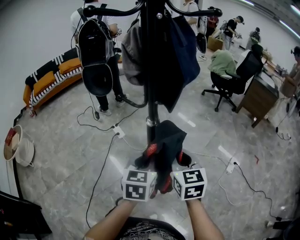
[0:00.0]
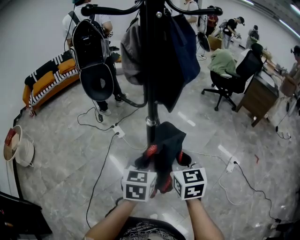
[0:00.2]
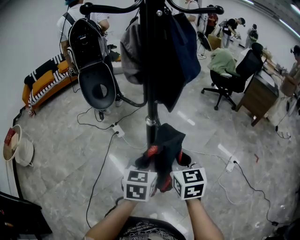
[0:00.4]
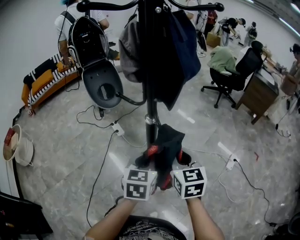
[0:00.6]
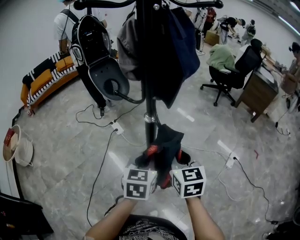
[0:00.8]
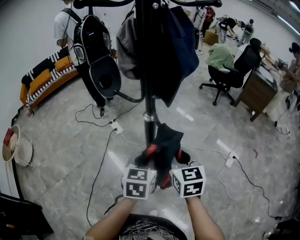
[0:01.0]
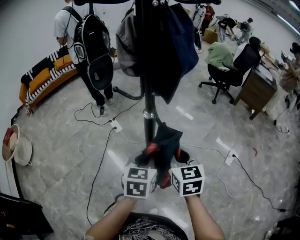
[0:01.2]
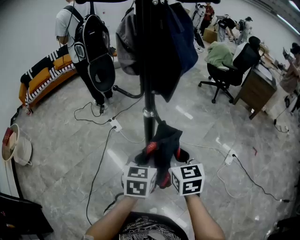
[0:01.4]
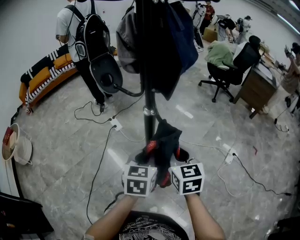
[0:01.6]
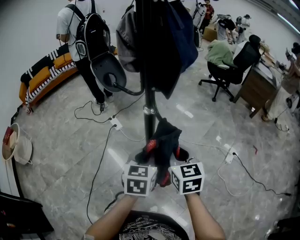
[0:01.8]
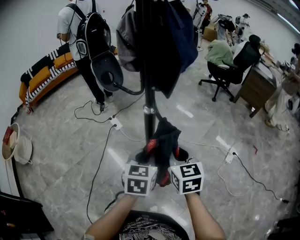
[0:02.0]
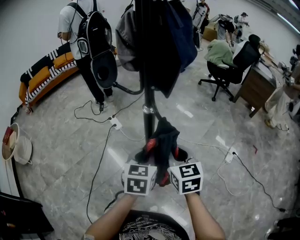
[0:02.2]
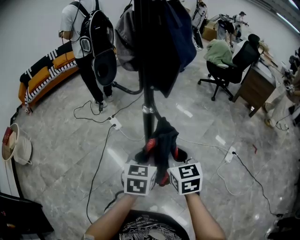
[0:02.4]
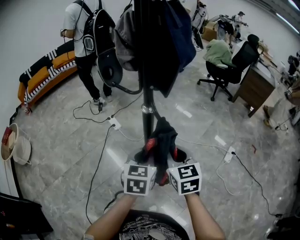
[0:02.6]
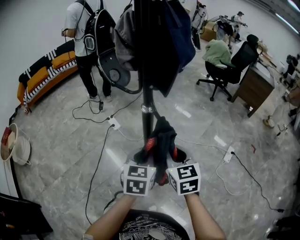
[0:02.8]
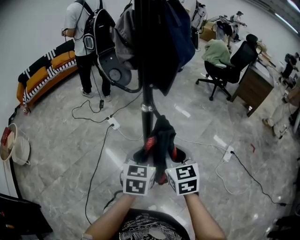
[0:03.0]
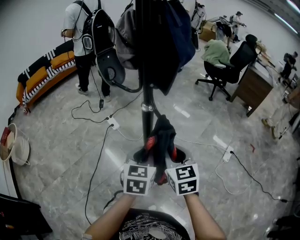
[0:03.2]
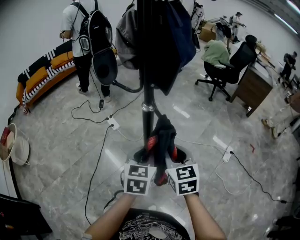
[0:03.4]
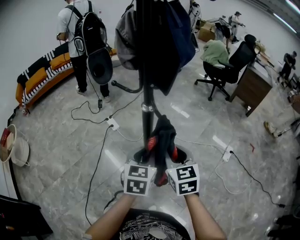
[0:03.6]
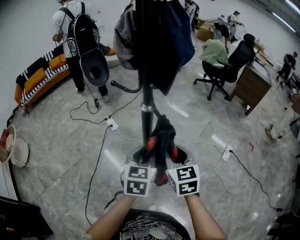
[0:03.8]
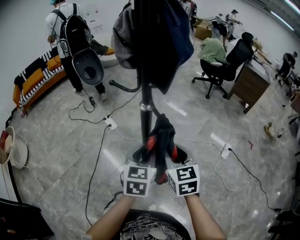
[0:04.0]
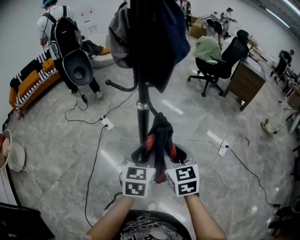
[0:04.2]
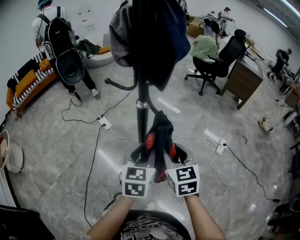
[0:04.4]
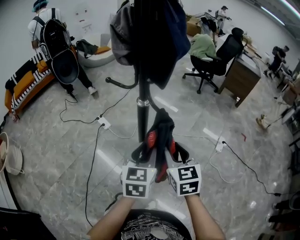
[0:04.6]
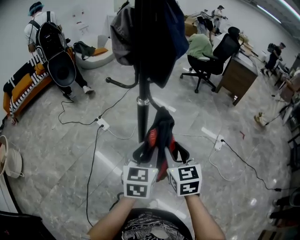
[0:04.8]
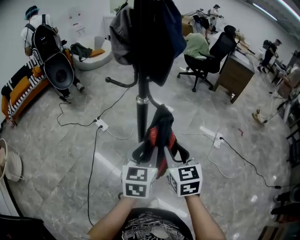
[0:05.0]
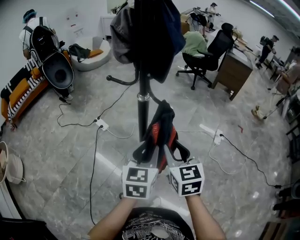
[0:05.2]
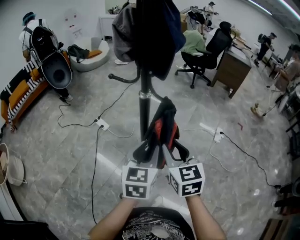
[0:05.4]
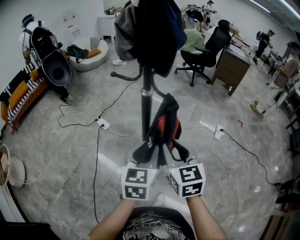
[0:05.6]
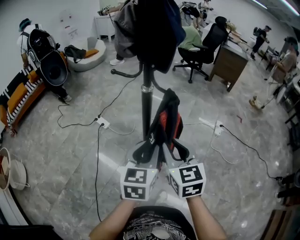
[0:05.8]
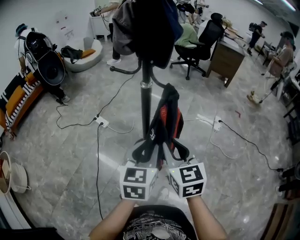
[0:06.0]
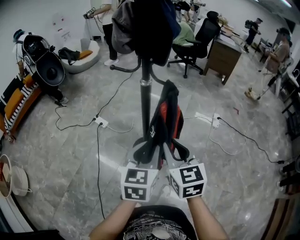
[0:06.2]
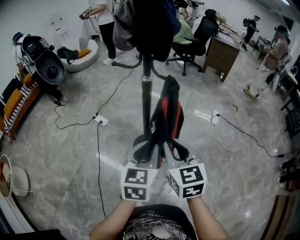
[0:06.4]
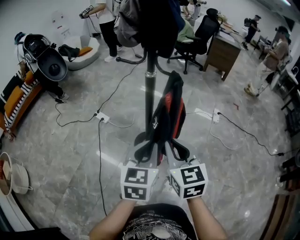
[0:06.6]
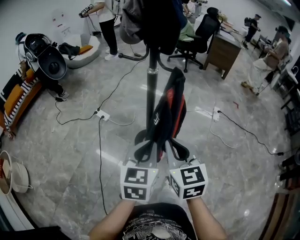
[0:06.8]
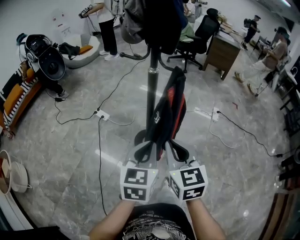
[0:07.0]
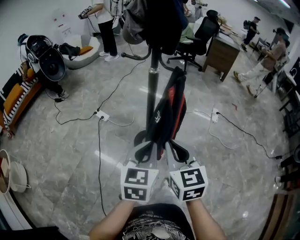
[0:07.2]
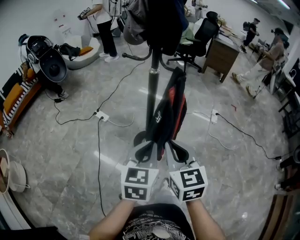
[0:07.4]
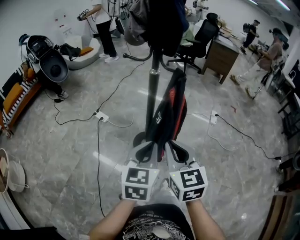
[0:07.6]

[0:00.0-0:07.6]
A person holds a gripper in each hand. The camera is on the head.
0:00.0 to 0:03.0: There are only small adjustments of the grippers.
0:03.0 to 0:04.6: The left gripper opens.
0:04.6 to 0:06.0: The left gripper is displaced backward by approximately 10 cm. The right gripper travels backward and to the left by roughly 15 cm.
0:06.0 to 0:07.6: The two grippers go approximately 10 cm backward. The left gripper closes up.

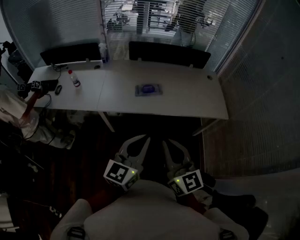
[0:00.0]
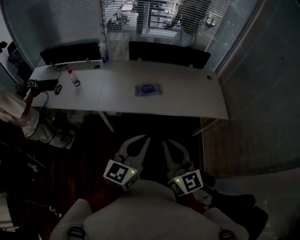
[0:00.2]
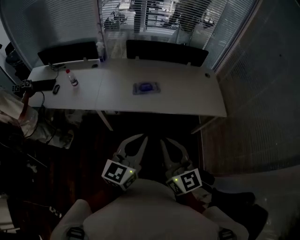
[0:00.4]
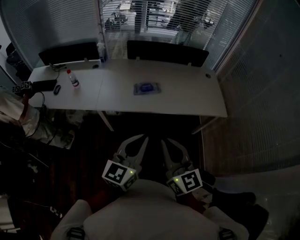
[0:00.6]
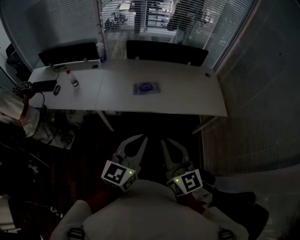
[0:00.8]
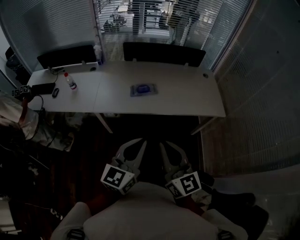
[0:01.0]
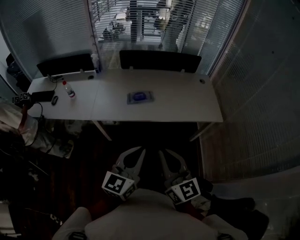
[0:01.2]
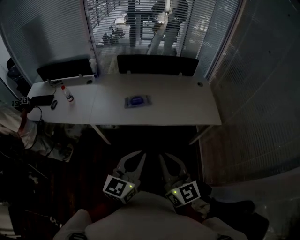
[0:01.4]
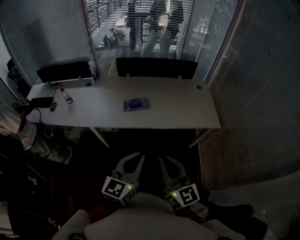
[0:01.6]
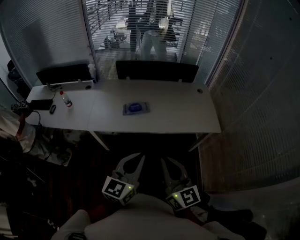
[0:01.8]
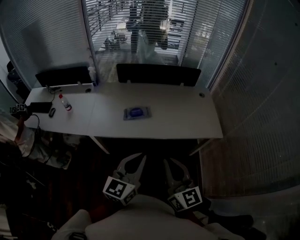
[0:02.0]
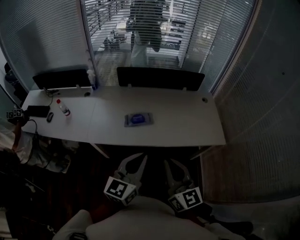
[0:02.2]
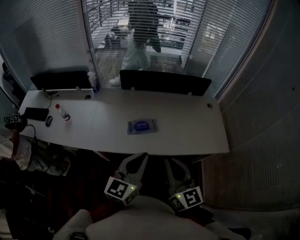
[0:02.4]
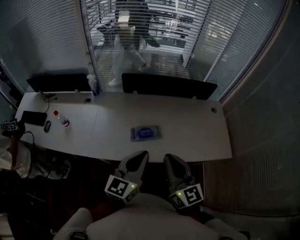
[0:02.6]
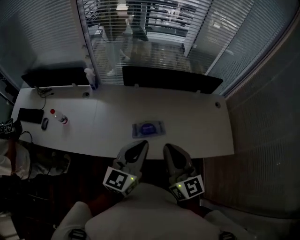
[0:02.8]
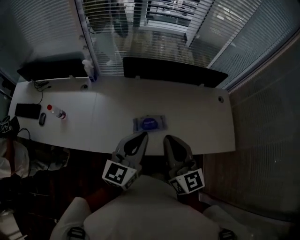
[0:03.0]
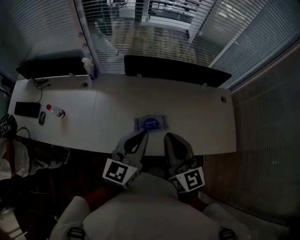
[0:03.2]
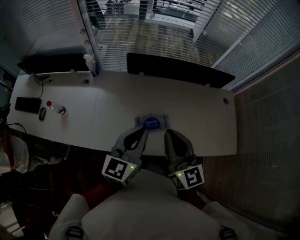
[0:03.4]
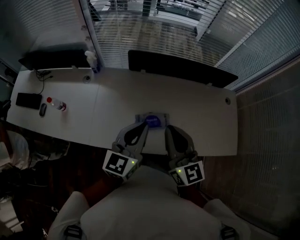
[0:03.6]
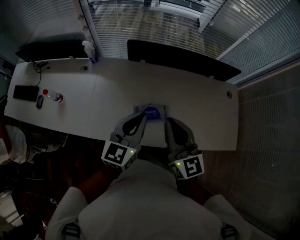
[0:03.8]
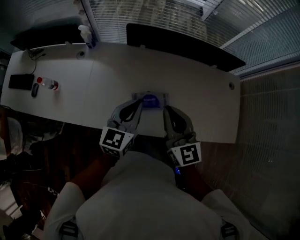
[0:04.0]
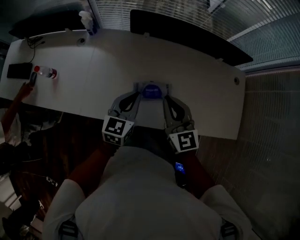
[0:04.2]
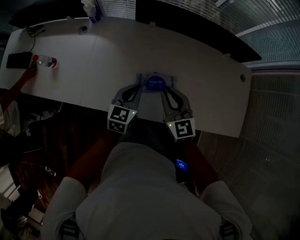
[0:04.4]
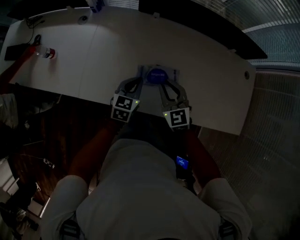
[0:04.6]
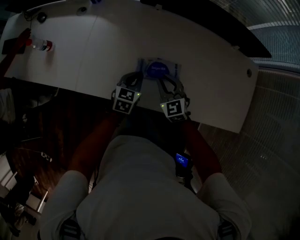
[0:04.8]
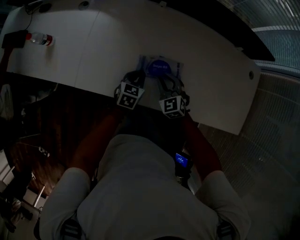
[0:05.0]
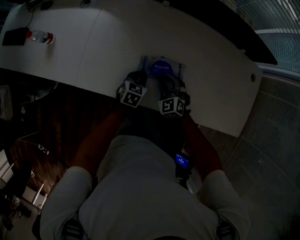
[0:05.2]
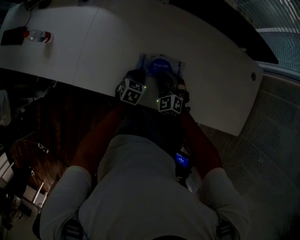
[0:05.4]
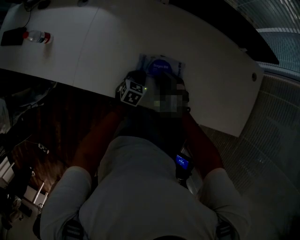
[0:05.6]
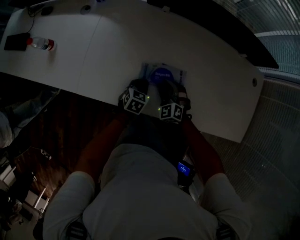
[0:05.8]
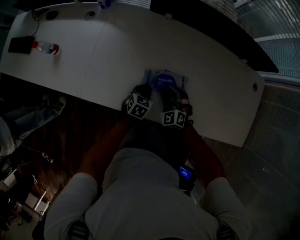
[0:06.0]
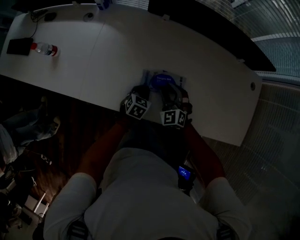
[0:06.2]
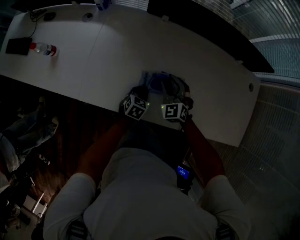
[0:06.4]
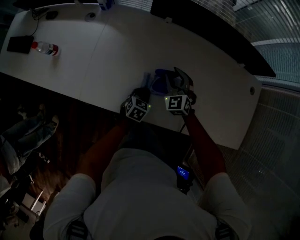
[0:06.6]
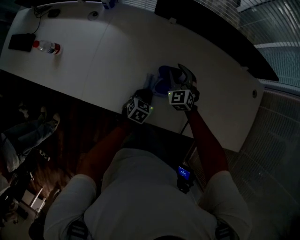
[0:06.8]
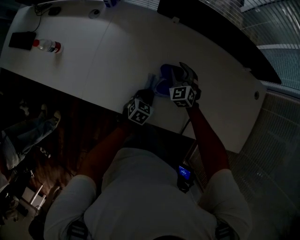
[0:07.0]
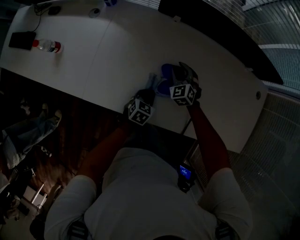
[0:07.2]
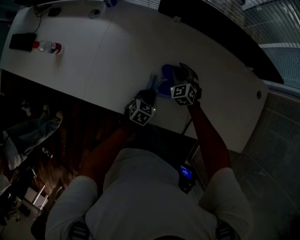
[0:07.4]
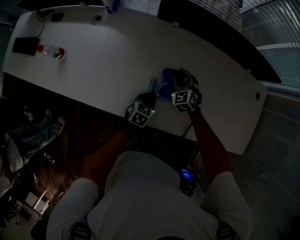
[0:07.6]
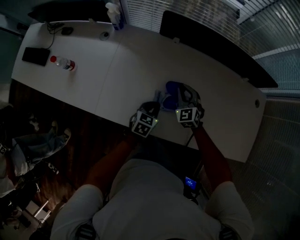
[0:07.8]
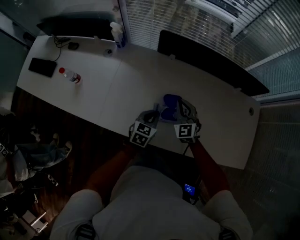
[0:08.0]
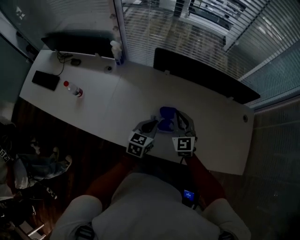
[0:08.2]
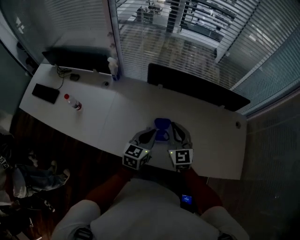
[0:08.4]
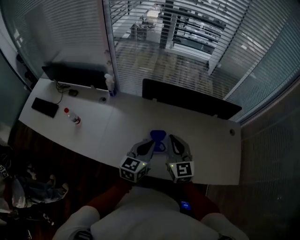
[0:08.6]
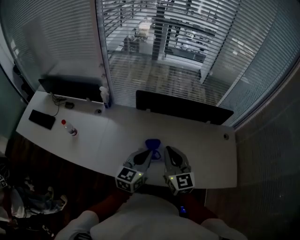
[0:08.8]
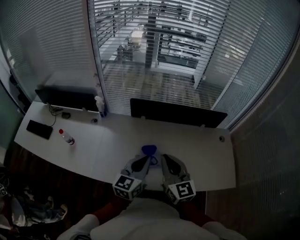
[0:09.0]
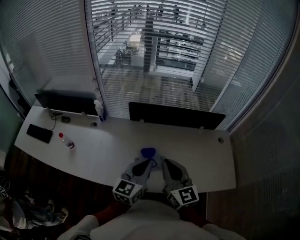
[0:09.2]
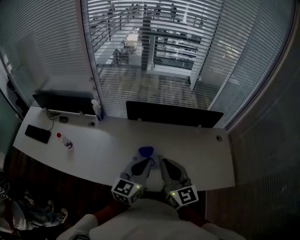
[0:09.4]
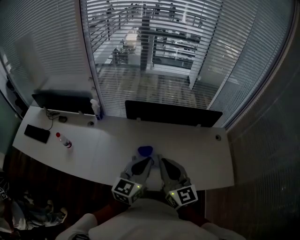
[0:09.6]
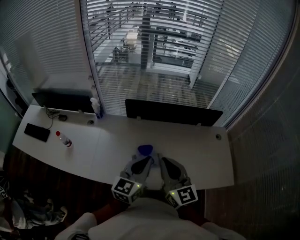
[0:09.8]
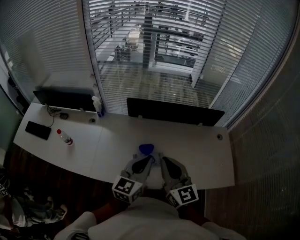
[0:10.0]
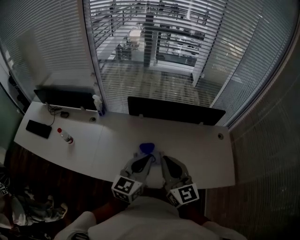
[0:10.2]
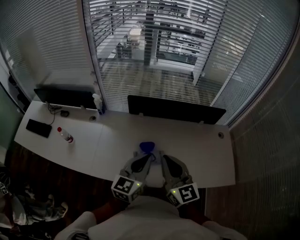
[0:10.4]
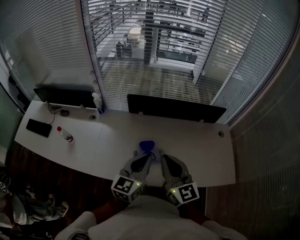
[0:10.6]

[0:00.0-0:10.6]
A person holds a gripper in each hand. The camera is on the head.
0:00.0 to 0:01.6: The two grippers go about 10 cm to the right.
0:01.6 to 0:03.0: The left gripper goes roughly 40 cm forward and to the left; the right gripper travels forward by some 35 cm.
0:03.0 to 0:04.6: The right gripper moves downward and forward, about 30 cm, and rotates approximately 40 degrees. Meanwhile the left gripper travels downward by roughly 30 cm, and rotates about 30 degrees.
0:04.6 to 0:06.0: Both grippers travel together downward, approximately 15 cm. The right gripper rotates roughly 30 degrees, and opens its fingers.
0:06.0 to 0:07.6: The right gripper goes approximately 15 cm forward.
0:07.6 to 0:09.0: The right gripper heads upward and backward, covering approximately 40 cm, tilts its fingers approximately 40 degrees upward, and closes; the left gripper shifts approximately 40 cm upward, and tilts its fingers approximately 40 degrees upward.
0:09.0 to 0:10.6: The grippers stay close to where they were, moving slightly.

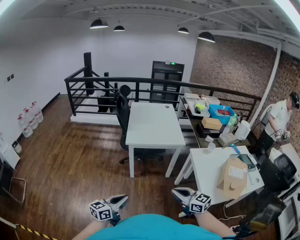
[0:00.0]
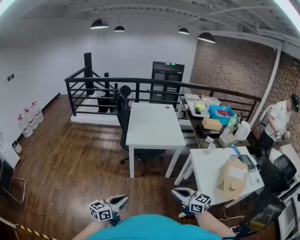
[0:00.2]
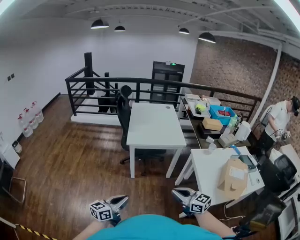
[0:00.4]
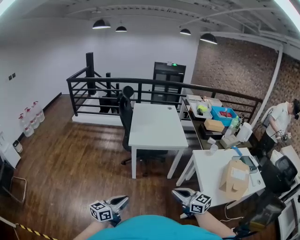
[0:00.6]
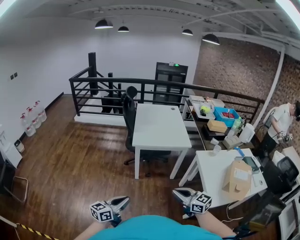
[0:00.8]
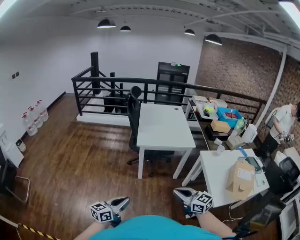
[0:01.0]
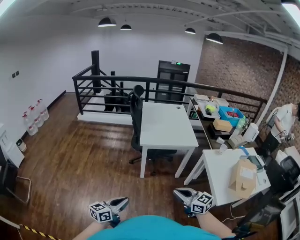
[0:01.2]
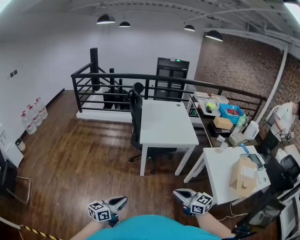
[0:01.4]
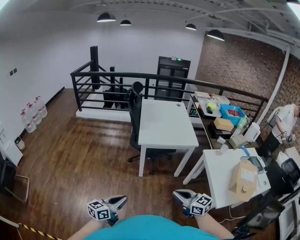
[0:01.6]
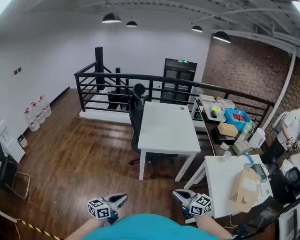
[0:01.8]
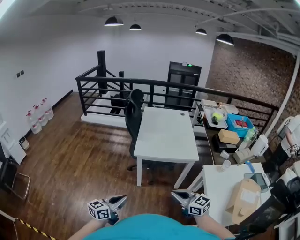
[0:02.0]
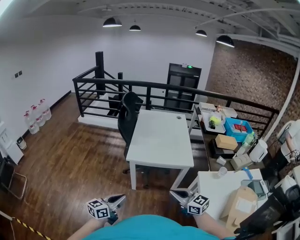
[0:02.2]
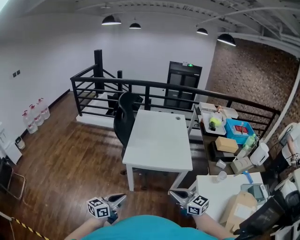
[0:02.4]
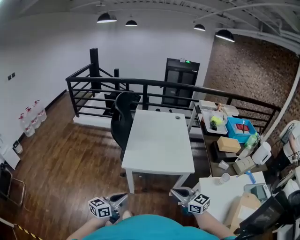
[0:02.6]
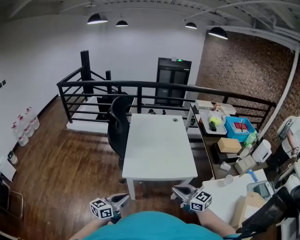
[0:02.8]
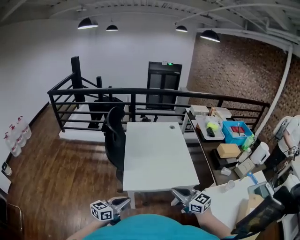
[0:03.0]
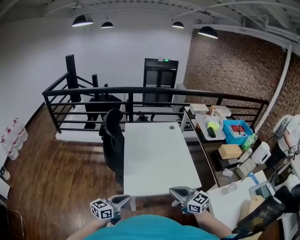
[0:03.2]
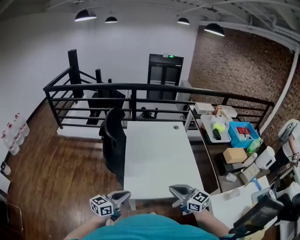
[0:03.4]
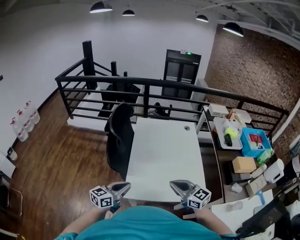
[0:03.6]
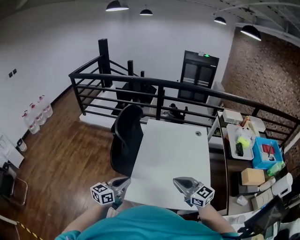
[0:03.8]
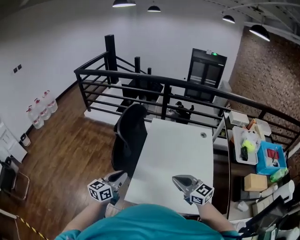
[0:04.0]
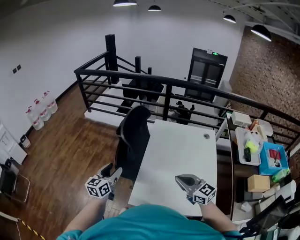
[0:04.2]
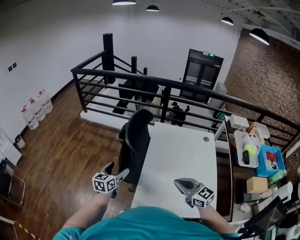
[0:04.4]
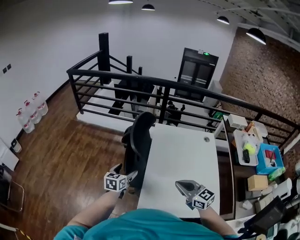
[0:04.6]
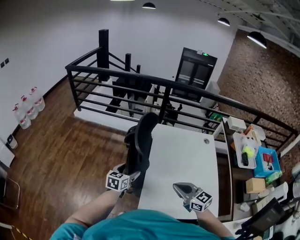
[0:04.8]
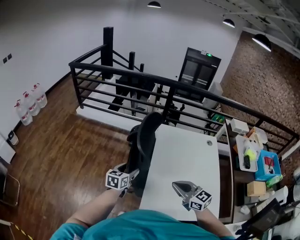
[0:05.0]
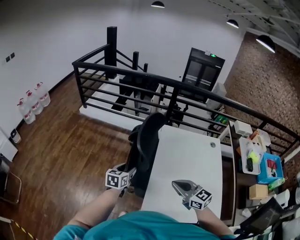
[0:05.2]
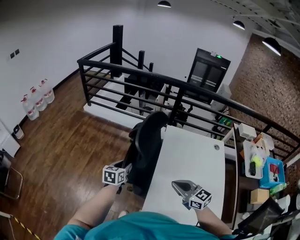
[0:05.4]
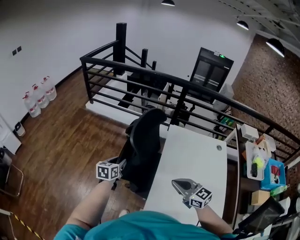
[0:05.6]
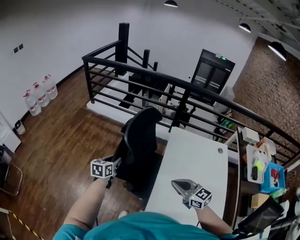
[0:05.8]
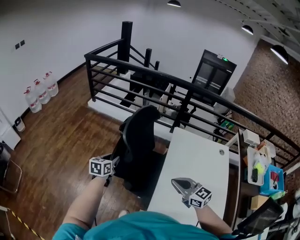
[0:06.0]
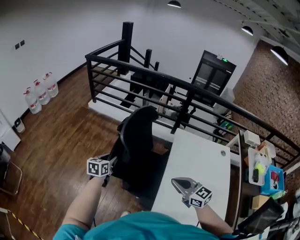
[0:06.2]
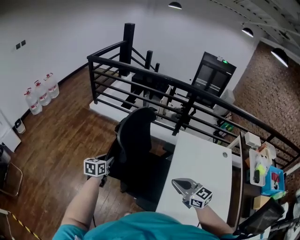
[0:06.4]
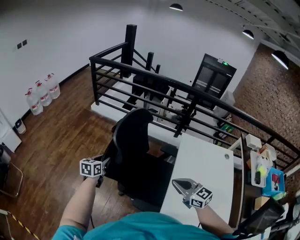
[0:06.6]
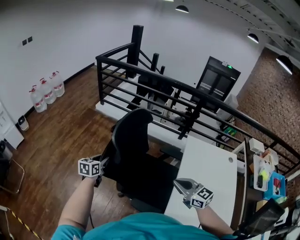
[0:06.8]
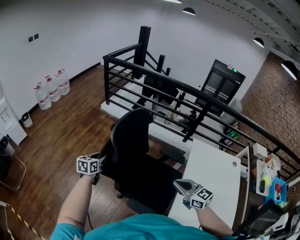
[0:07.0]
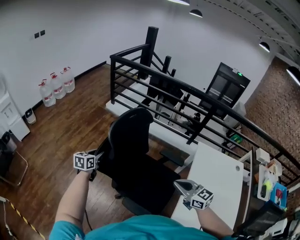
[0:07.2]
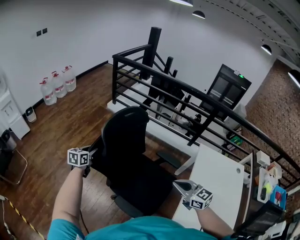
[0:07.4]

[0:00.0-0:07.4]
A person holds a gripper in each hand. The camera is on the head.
0:00.0 to 0:01.4: The grippers both shift to the left by some 10 cm.
0:01.4 to 0:03.0: Both grippers are carried forward, about 50 cm.
0:03.0 to 0:04.4: The right gripper moves approximately 35 cm. The left gripper shifts by about 40 cm, swivels about 40 degrees, and opens up.
0:04.4 to 0:06.0: Both grippers move forward and to the left, some 20 cm. The left gripper closes.
0:06.0 to 0:07.4: The right gripper travels to the left and forward by some 20 cm, while the left gripper moves to the left, roughly 35 cm.
